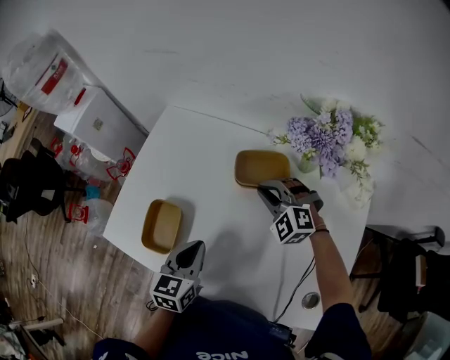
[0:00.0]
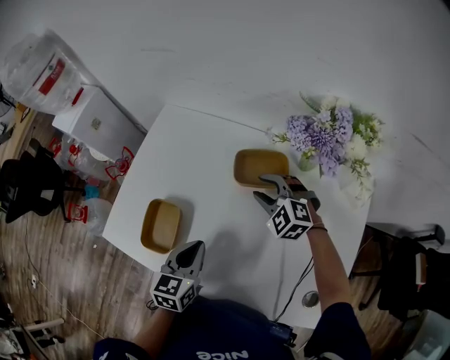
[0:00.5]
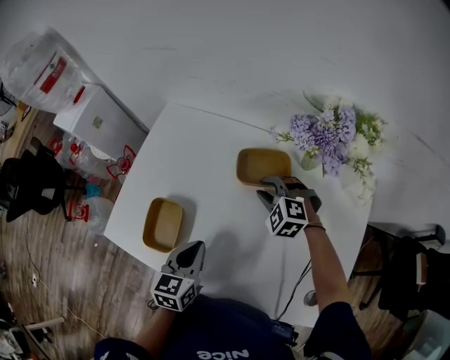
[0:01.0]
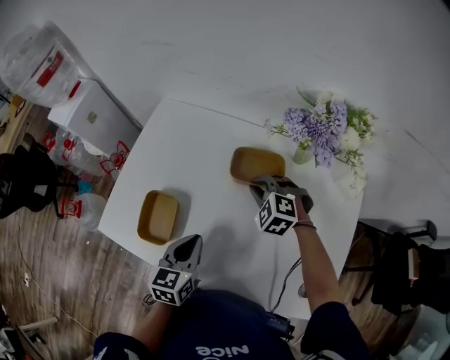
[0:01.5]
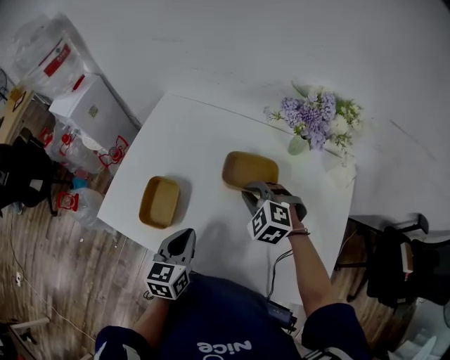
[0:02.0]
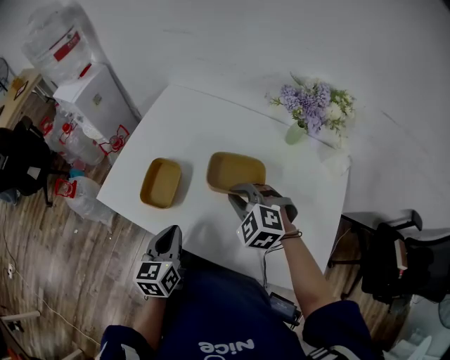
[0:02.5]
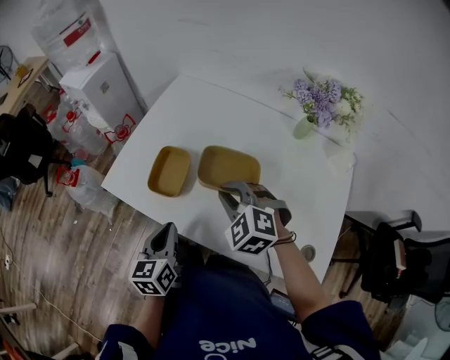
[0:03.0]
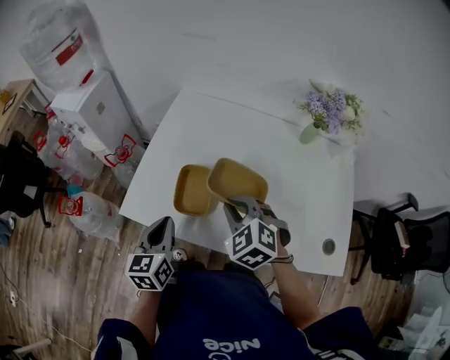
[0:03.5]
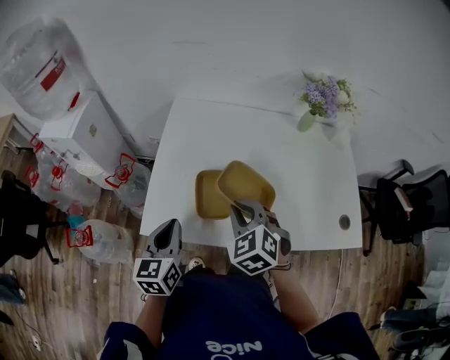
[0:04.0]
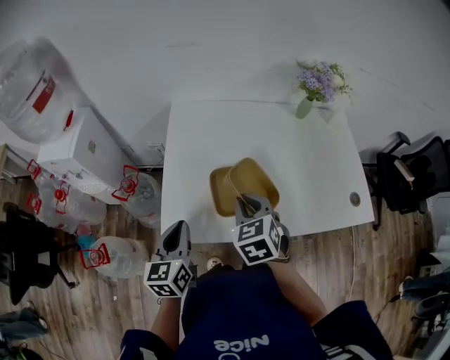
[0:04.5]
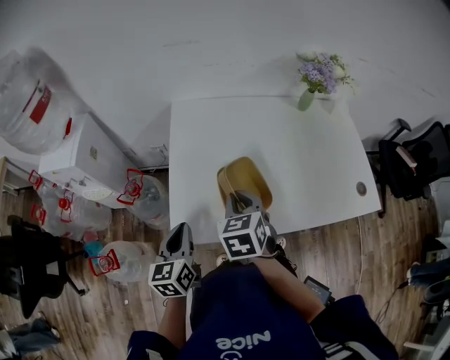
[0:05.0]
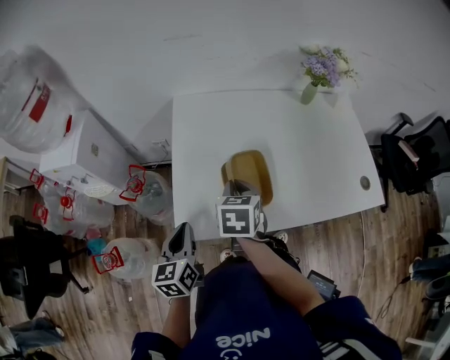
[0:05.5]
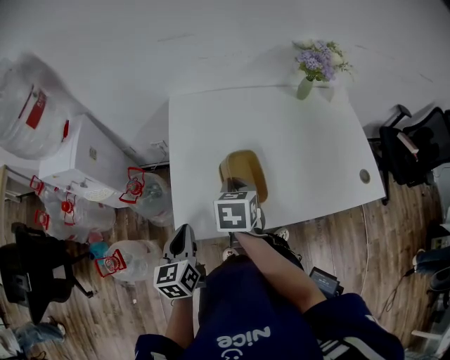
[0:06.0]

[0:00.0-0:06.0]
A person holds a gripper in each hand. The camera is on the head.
0:00.0 to 0:02.0: The left gripper moves backward, about 5 cm. The right gripper is displaced backward by approximately 10 cm, and opens, then closes once more.
0:02.0 to 0:04.0: The left gripper ends up about 30 cm from where it was. Meanwhile the right gripper changes place by approximately 30 cm, and rotates some 40 degrees.
0:04.0 to 0:06.0: Both grippers travel together to the left, about 10 cm. The right gripper twists approximately 50 degrees clockwise, seen from behind.

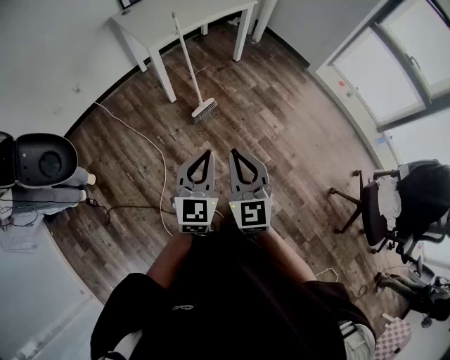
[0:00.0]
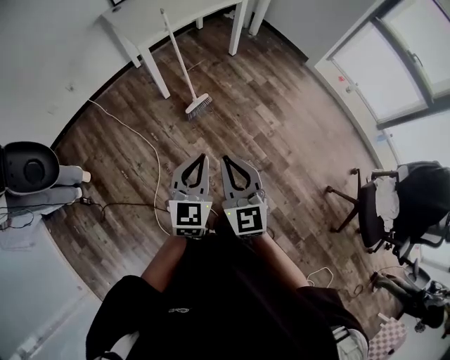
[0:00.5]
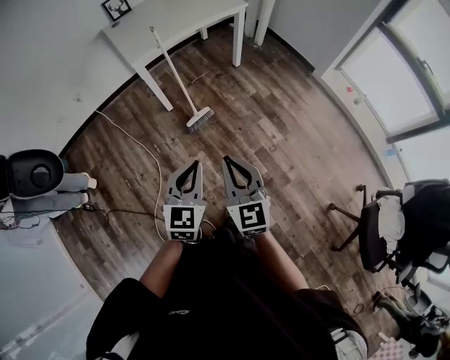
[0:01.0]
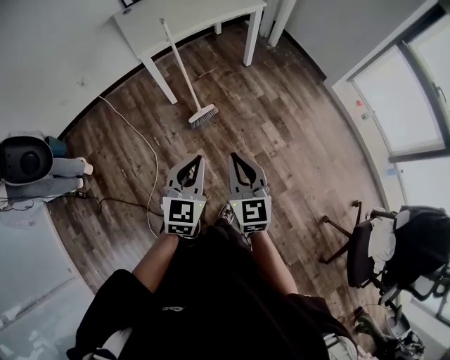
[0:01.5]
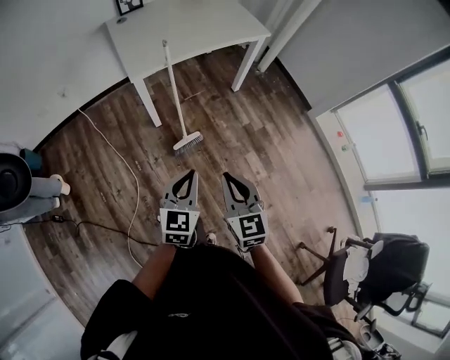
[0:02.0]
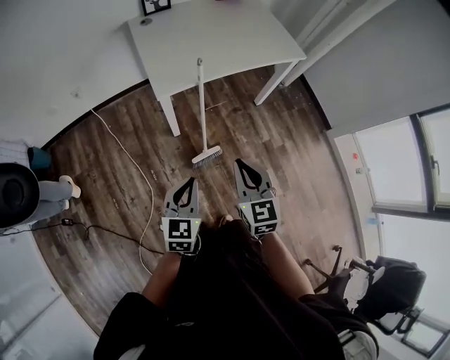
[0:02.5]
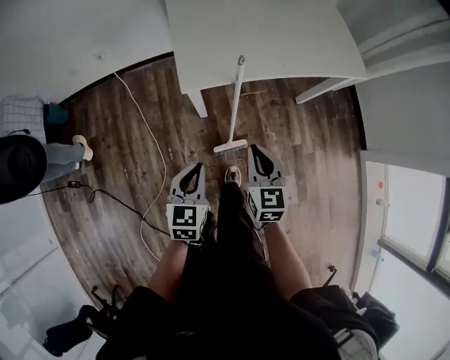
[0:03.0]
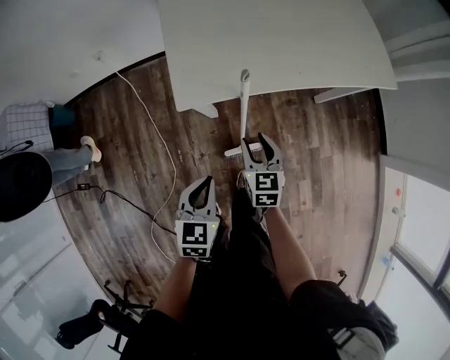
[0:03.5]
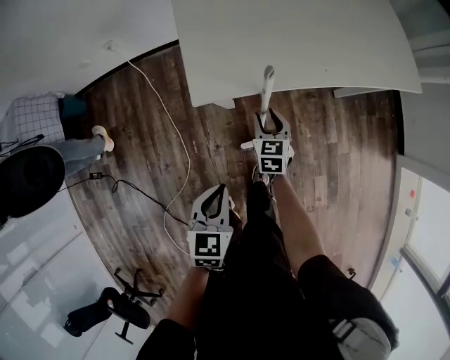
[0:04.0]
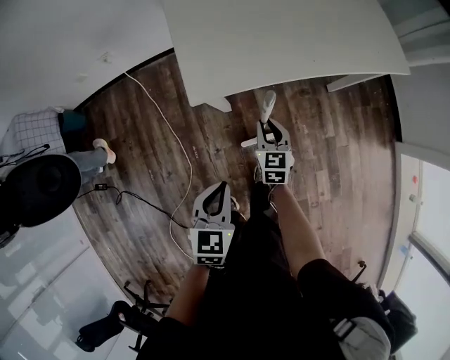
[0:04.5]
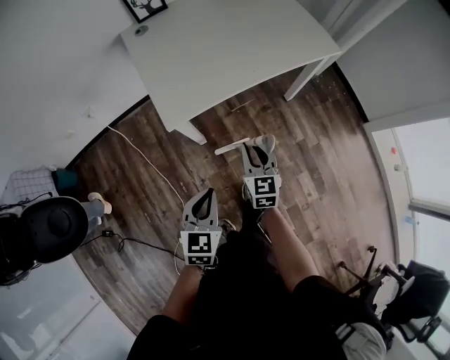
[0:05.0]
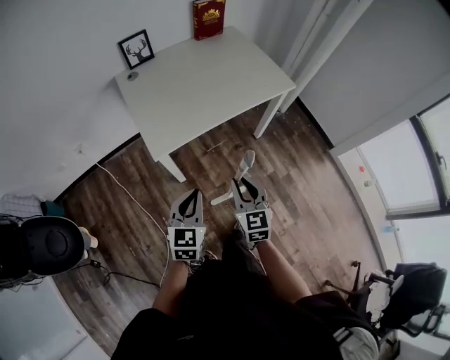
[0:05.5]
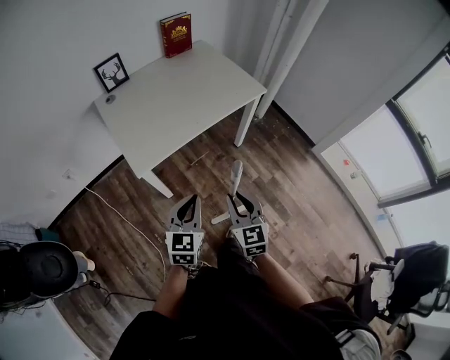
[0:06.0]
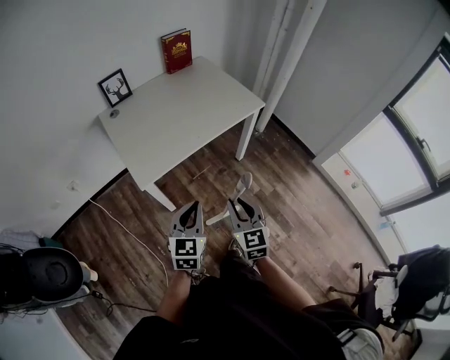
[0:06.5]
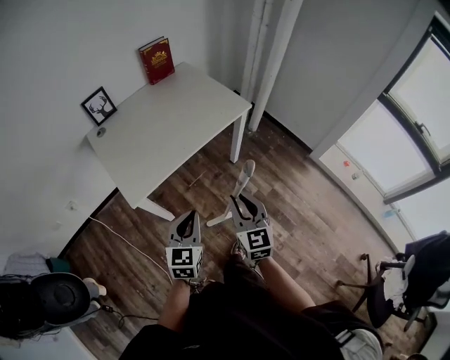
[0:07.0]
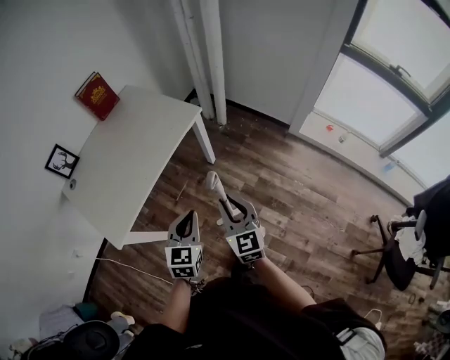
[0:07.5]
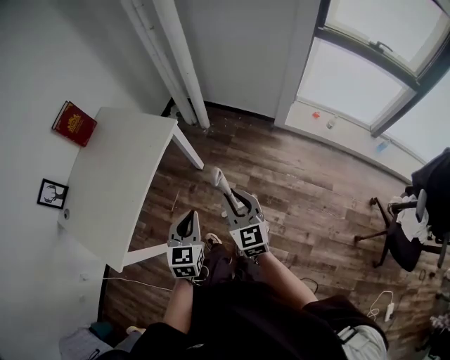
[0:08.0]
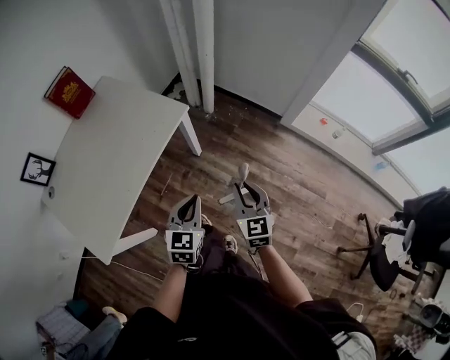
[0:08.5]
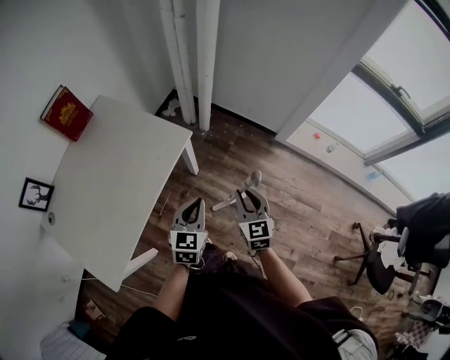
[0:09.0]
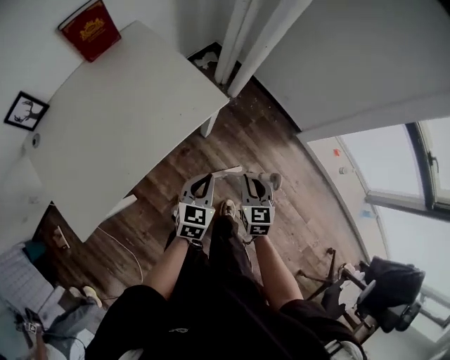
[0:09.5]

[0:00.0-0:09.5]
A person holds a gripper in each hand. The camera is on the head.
0:00.0 to 0:02.0: The two grippers go roughly 25 cm forward.
0:02.0 to 0:04.0: The left gripper goes some 35 cm forward and downward, and rotates roughly 30 degrees; the right gripper travels forward and downward by about 60 cm, swivels about 20 degrees, and opens.
0:04.0 to 0:05.5: The left gripper travels upward by some 15 cm, and turns by some 30 degrees, while the right gripper shifts approximately 35 cm upward and backward, turns by about 20 degrees, and closes up.
0:05.5 to 0:07.5: The right gripper moves to the right, about 25 cm, and swivels roughly 20 degrees. The left gripper shifts approximately 25 cm to the right and forward, and changes its angle by about 20 degrees.
0:07.5 to 0:09.5: The two grippers go approximately 30 cm forward and downward. The right gripper rotates roughly 20 degrees.

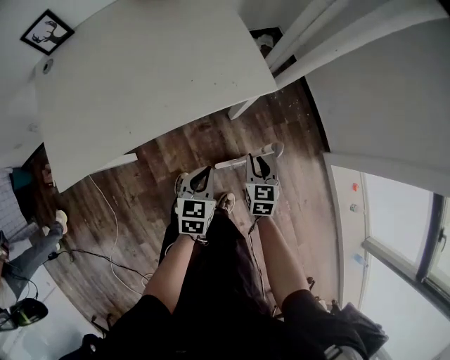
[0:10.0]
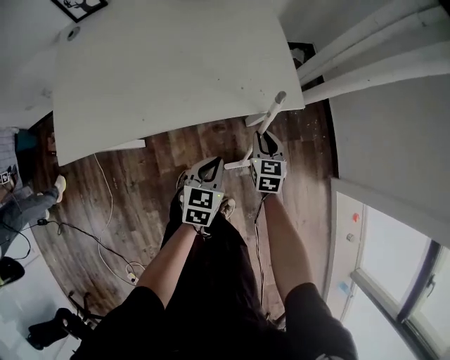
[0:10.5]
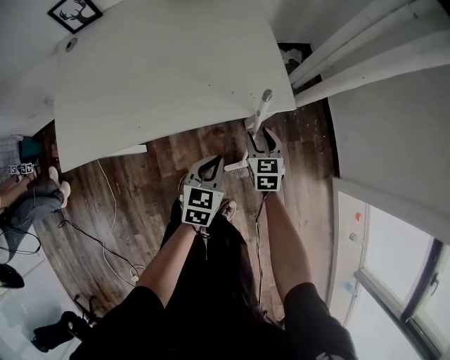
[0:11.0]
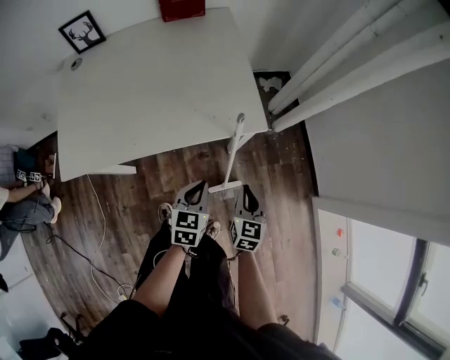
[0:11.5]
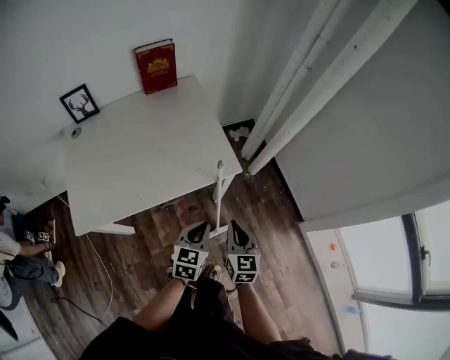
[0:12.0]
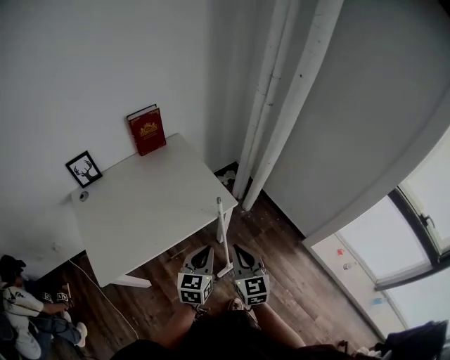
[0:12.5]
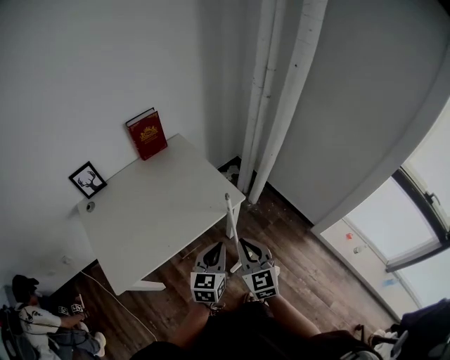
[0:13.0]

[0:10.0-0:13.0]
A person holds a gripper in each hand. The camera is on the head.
0:10.0 to 0:11.5: The two grippers go approximately 5 cm upward. The right gripper moves roughly 10 cm forward and comes back, and opens, then closes again.
0:11.5 to 0:13.0: The two grippers go approximately 25 cm upward. The left gripper rotates about 30 degrees, while the right gripper swivels approximately 20 degrees.

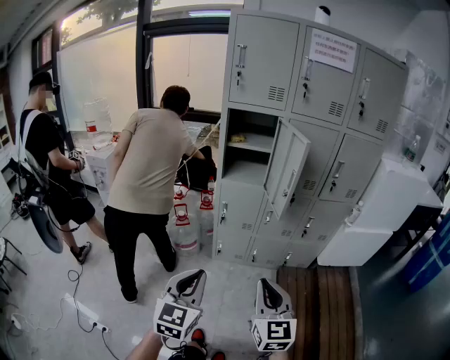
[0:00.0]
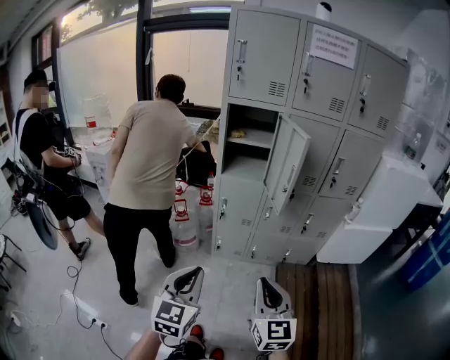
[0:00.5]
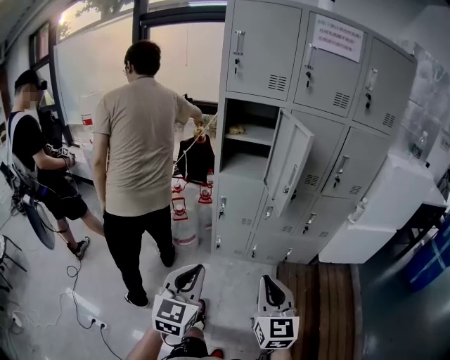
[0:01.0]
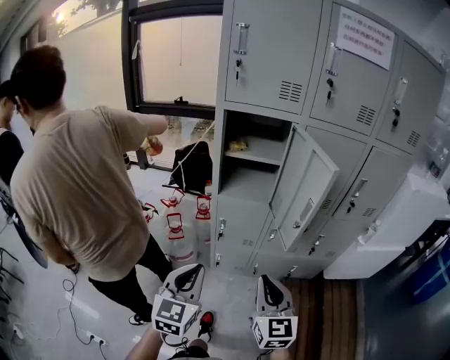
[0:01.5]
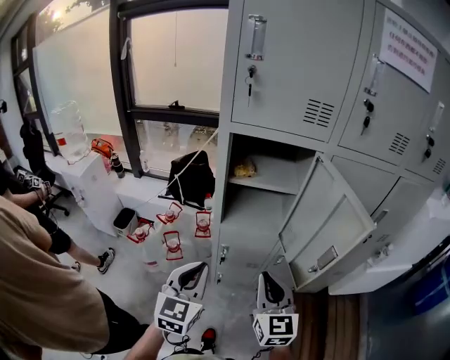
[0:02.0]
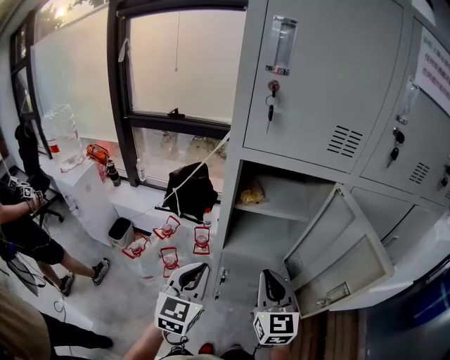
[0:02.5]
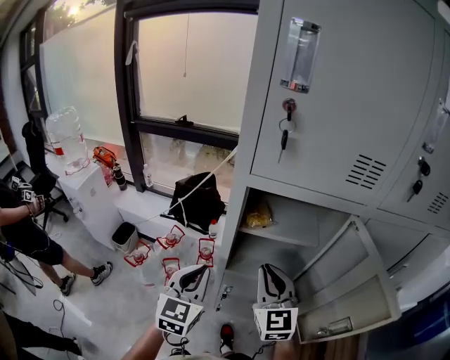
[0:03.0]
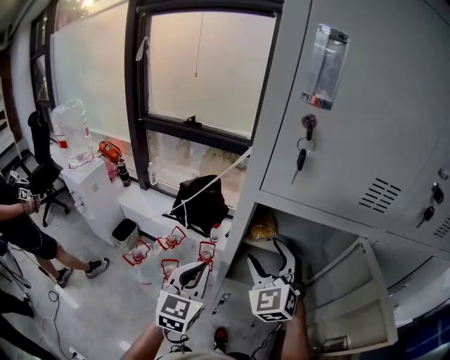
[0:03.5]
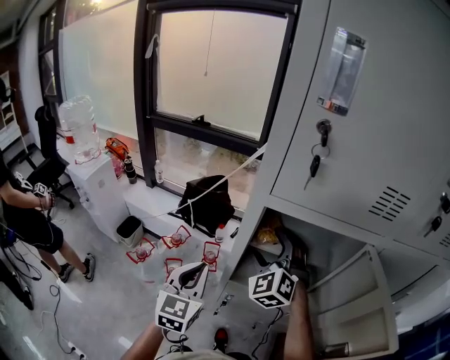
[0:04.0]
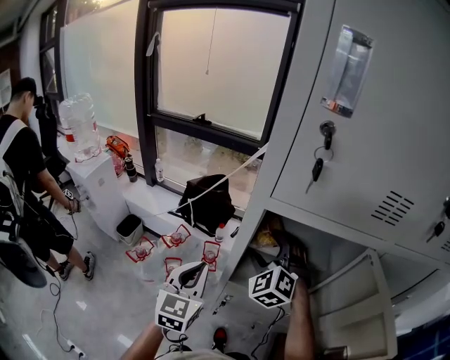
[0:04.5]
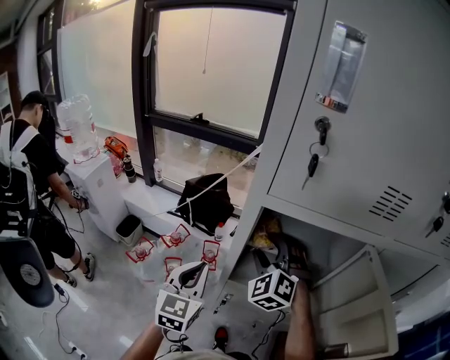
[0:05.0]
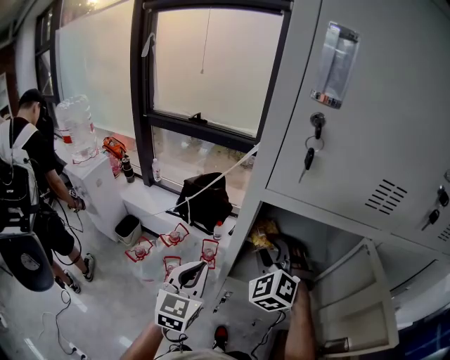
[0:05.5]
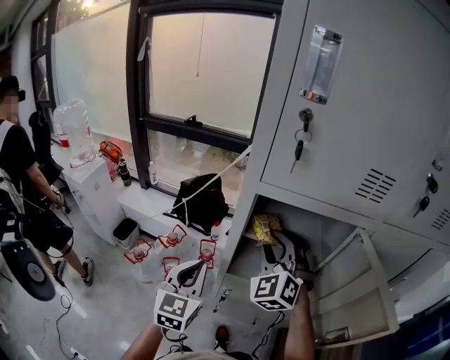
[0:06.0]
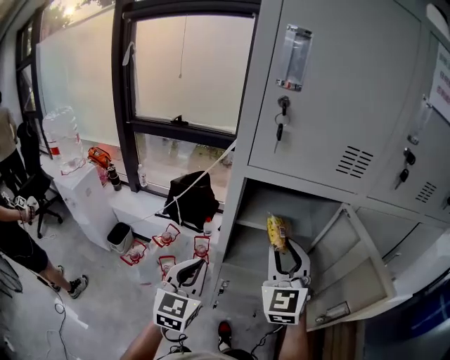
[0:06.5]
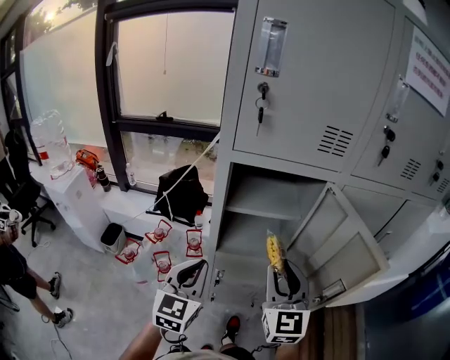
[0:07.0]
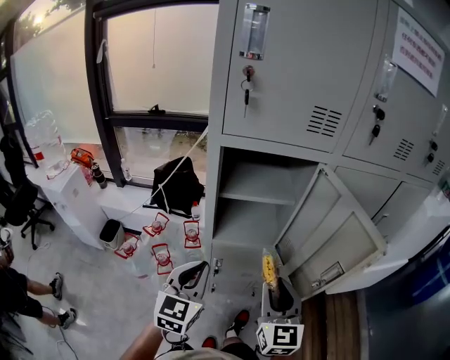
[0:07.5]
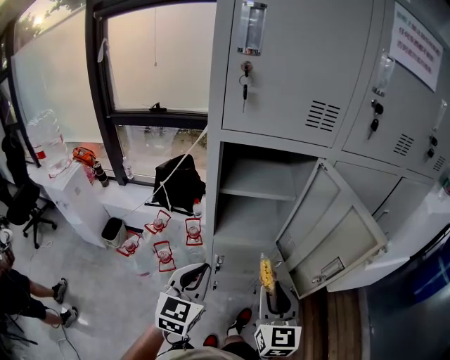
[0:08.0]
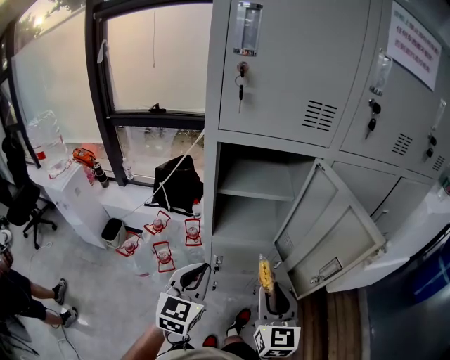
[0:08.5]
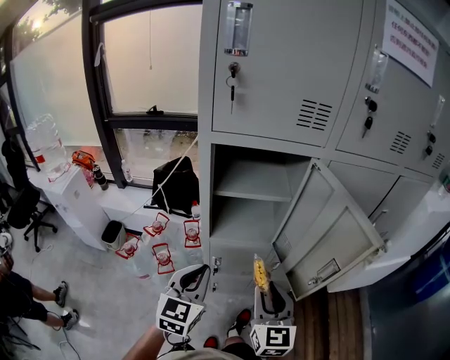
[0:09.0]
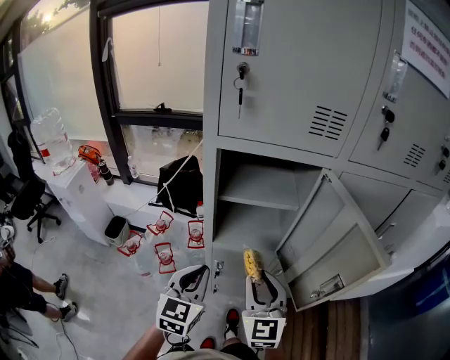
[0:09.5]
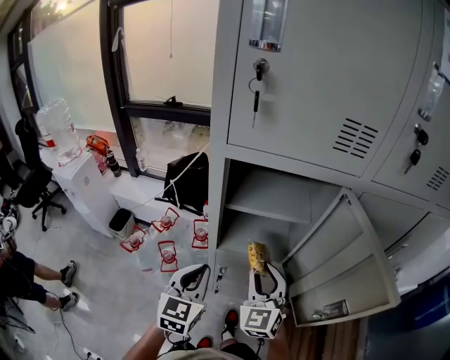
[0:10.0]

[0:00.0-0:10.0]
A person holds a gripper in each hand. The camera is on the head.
0:00.0 to 0:02.0: Both grippers move forward, roughly 40 cm.
0:02.0 to 0:04.0: The right gripper heads forward, covering roughly 30 cm, twists about 50 degrees counterclockwise, seen from behind, and opens up. The left gripper shifts some 20 cm forward.
0:04.0 to 0:06.0: The right gripper changes place by approximately 5 cm, and closes up.
0:06.0 to 0:08.0: The left gripper is displaced backward and to the right by roughly 15 cm. Meanwhile the right gripper moves backward and to the right, approximately 25 cm, and twists about 50 degrees clockwise, seen from behind.
0:08.0 to 0:10.0: The left gripper is displaced forward by approximately 5 cm. The right gripper is displaced forward by some 15 cm, and rotates approximately 30 degrees.
